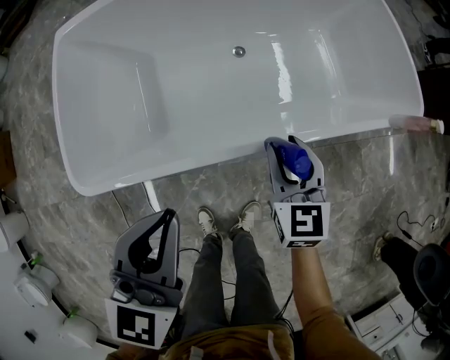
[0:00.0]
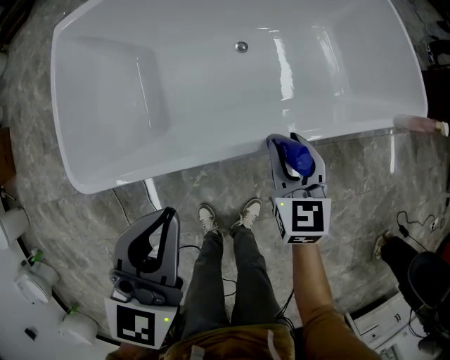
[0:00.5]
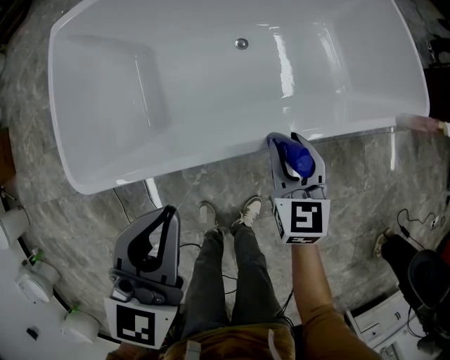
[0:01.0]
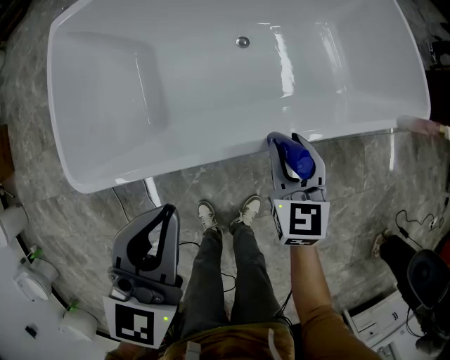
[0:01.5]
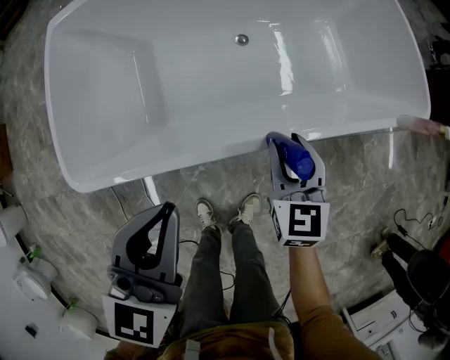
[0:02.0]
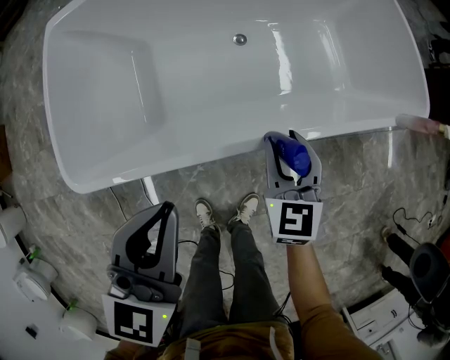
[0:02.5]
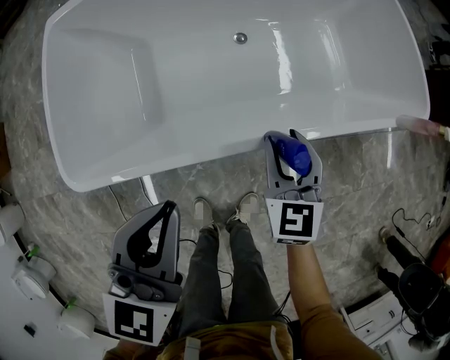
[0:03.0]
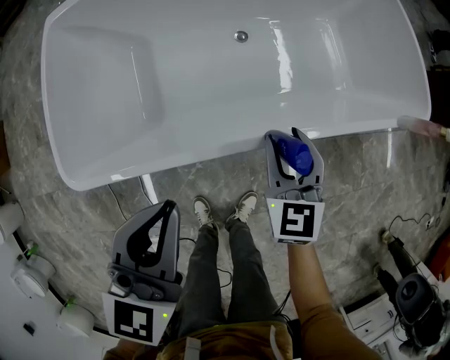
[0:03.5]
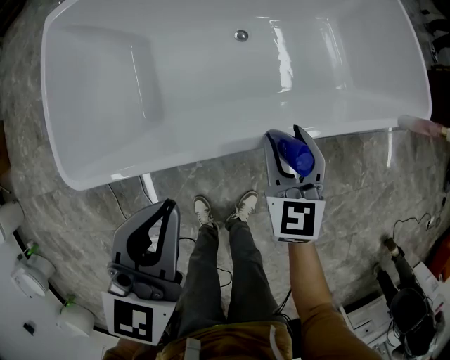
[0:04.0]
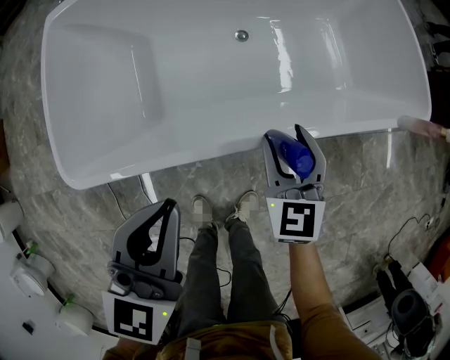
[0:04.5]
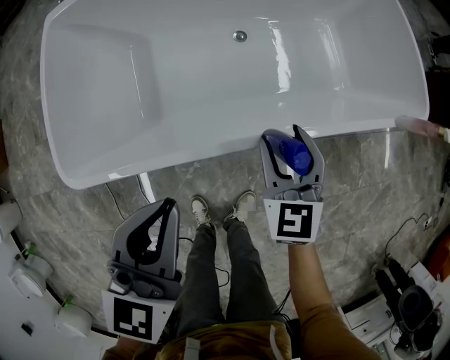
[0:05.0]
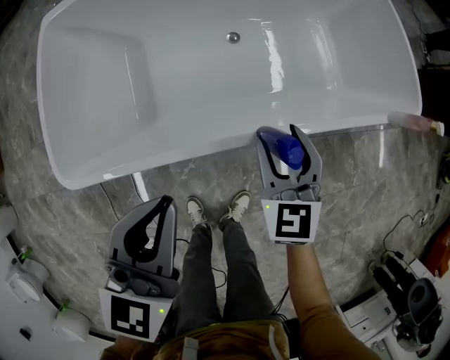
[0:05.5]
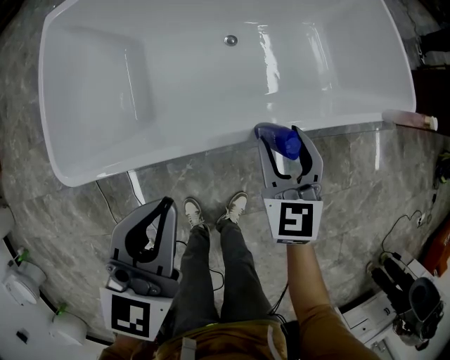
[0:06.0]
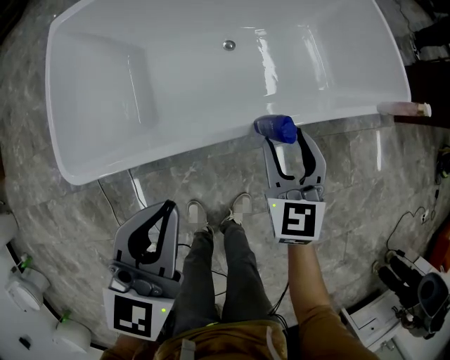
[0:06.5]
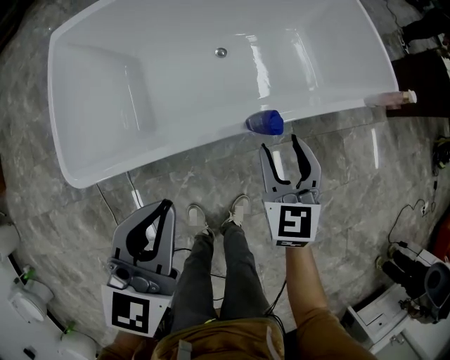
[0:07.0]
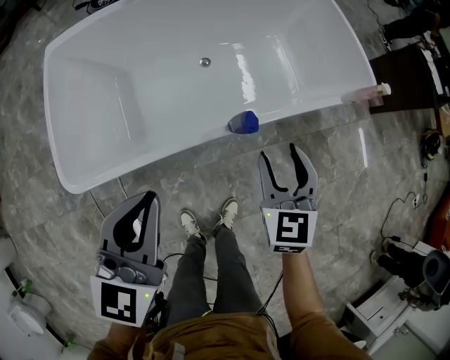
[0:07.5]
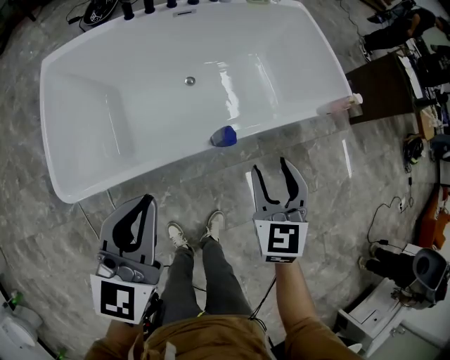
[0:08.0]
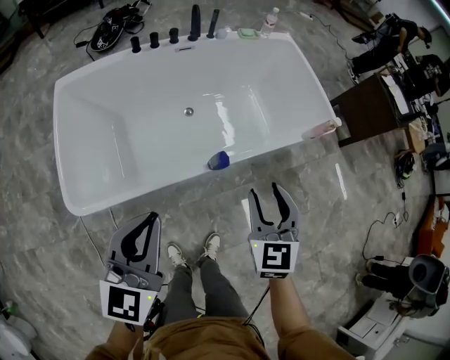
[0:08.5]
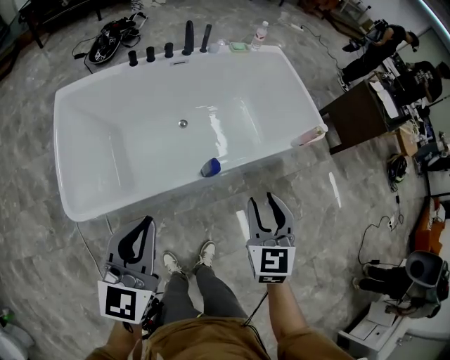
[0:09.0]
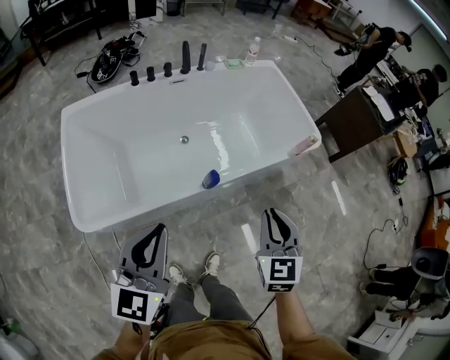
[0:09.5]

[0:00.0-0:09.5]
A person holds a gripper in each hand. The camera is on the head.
0:00.0 to 0:05.5: The grippers stay close to where they were, moving slightly.
0:05.5 to 0:07.5: The left gripper travels upward and backward by about 10 cm; the right gripper goes approximately 15 cm upward, backward and to the right.
0:07.5 to 0:09.5: The left gripper moves upward and backward, approximately 15 cm. The right gripper moves upward, backward and to the right, about 20 cm, and closes its fingers.

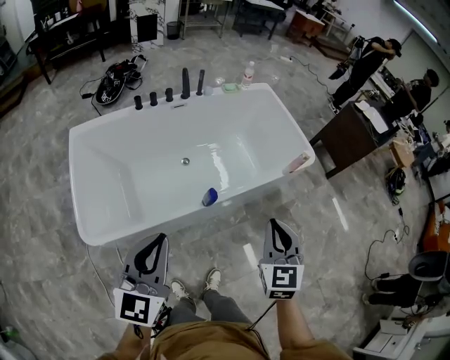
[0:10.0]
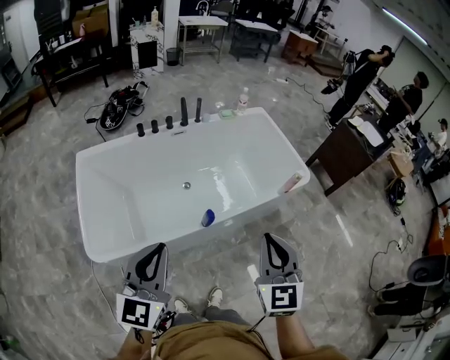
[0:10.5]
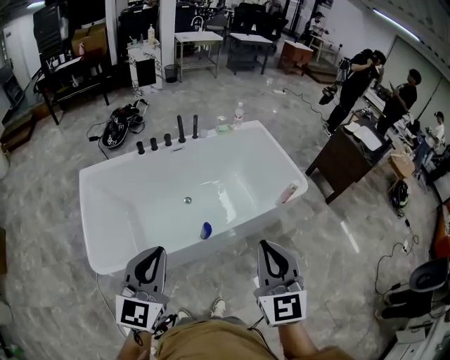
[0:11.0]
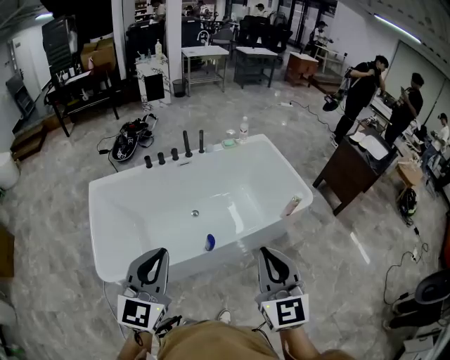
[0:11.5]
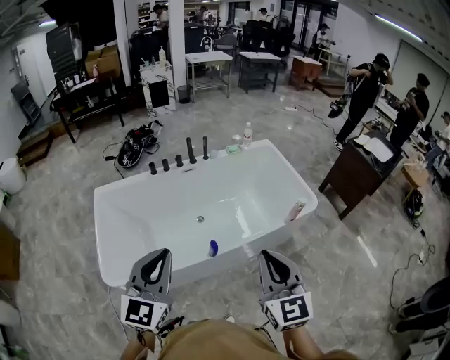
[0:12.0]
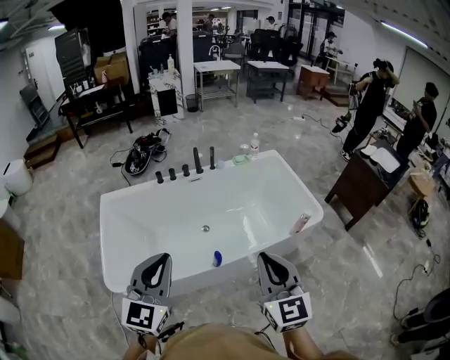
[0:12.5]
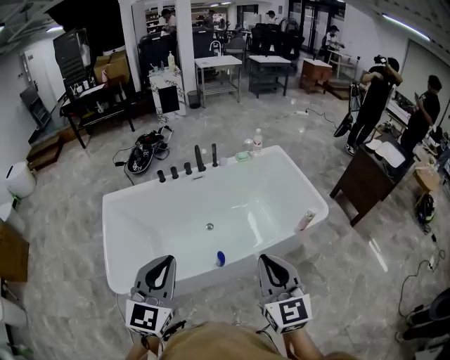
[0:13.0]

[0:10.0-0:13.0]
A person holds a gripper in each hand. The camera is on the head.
0:10.0 to 0:11.5: The two grippers go about 15 cm upward. The right gripper turns by about 20 degrees.
0:11.5 to 0:13.0: The right gripper shifts some 5 cm forward; the left gripper moves roughly 5 cm.

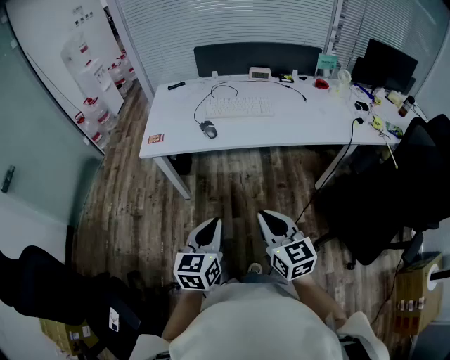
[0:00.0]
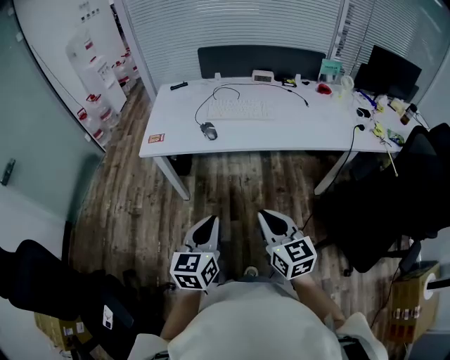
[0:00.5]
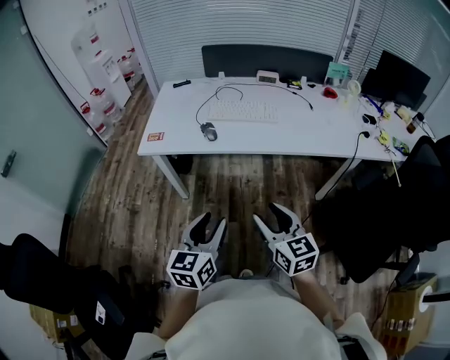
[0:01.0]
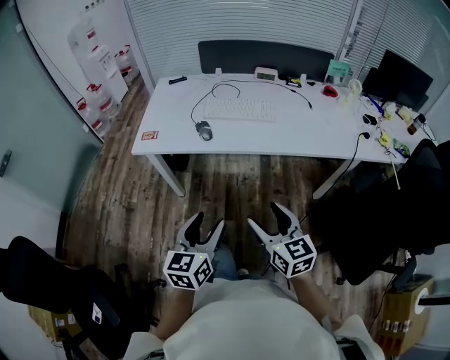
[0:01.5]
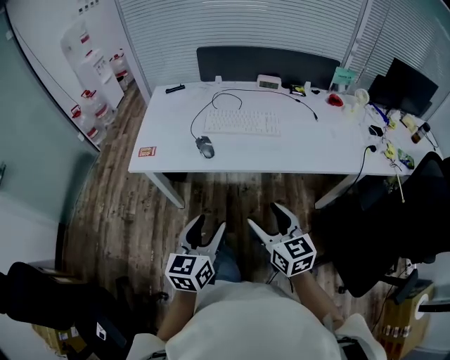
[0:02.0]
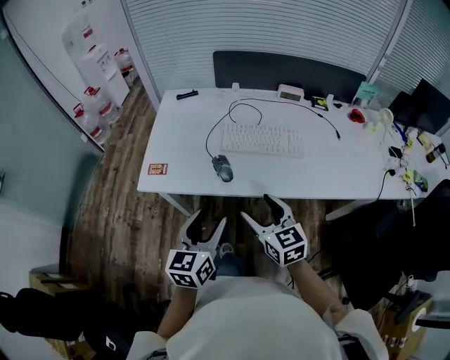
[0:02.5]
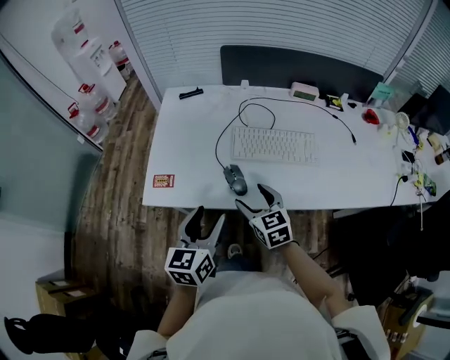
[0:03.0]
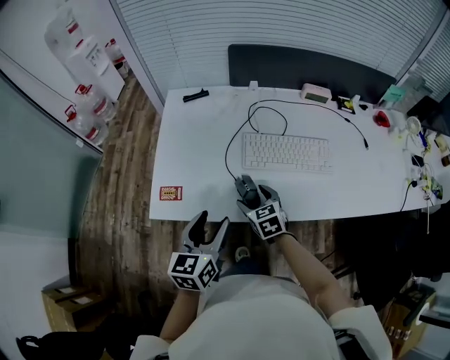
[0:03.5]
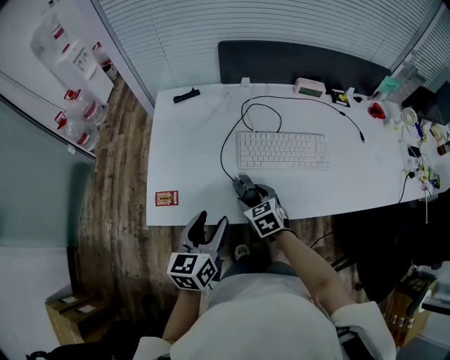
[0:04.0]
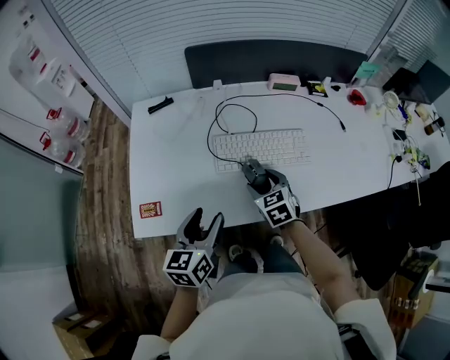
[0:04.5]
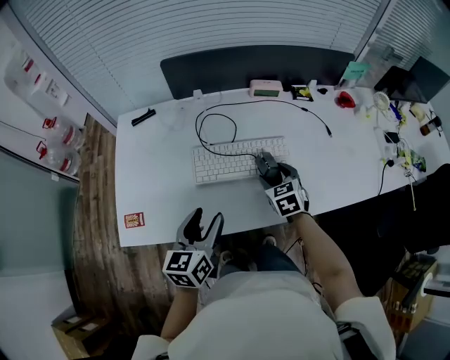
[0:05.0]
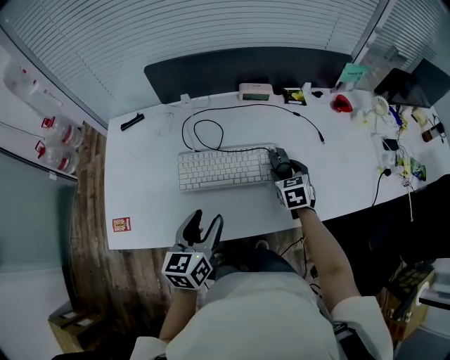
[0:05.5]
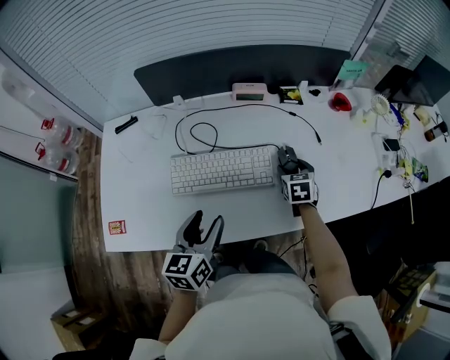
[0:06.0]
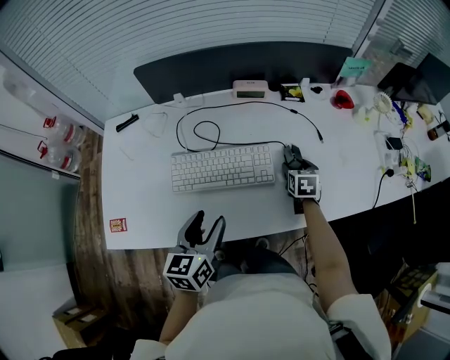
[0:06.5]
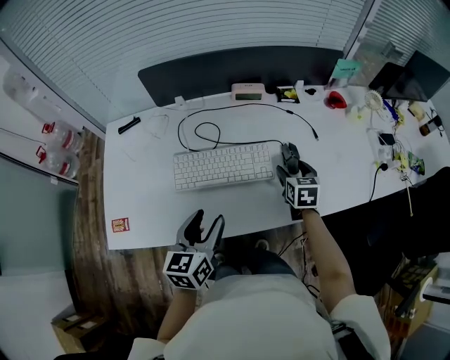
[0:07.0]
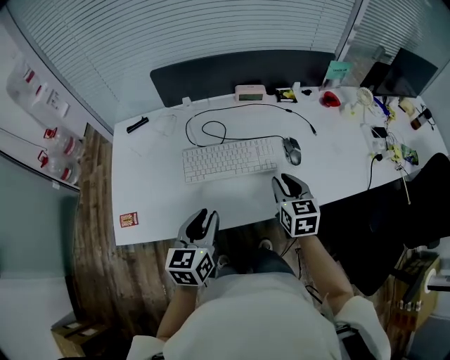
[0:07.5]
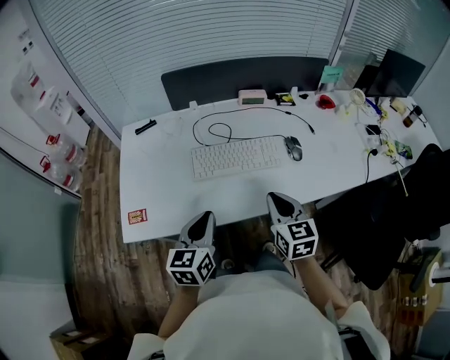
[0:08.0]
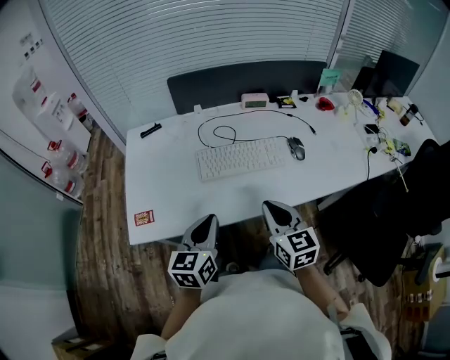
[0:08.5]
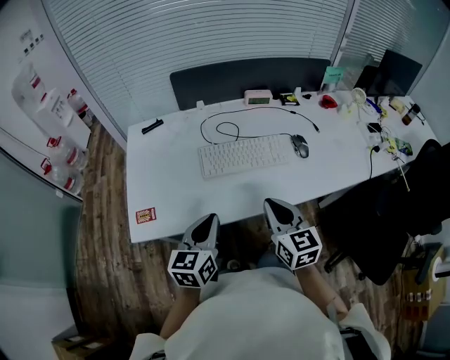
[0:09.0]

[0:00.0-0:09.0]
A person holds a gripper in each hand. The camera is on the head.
0:00.0 to 0:02.0: Both grippers travel together forward, approximately 15 cm. The left gripper opens its fingers, while the right gripper opens.
0:02.0 to 0:04.5: Both grippers travel together forward, about 35 cm. The right gripper rotates some 30 degrees.
0:04.5 to 0:07.0: The right gripper shifts roughly 30 cm to the right and forward, and changes its angle by roughly 30 degrees; the left gripper shifts approximately 15 cm to the right.
0:07.0 to 0:09.0: The right gripper moves backward, to the left and upward, approximately 35 cm, rotates roughly 30 degrees, and closes its fingers. Meanwhile the left gripper is displaced backward and to the left by some 15 cm, and closes.
